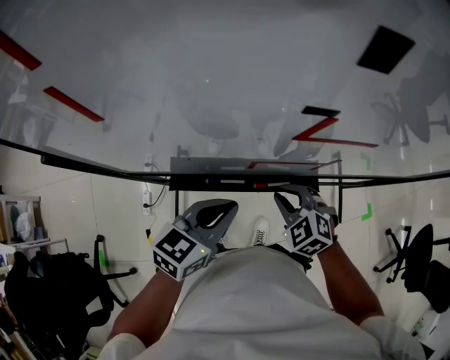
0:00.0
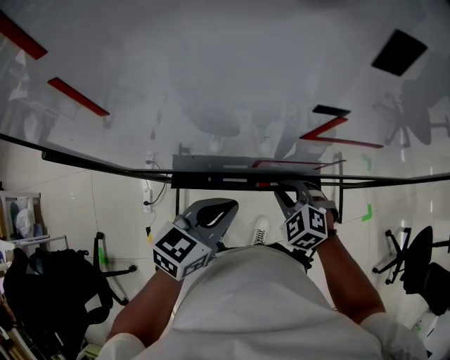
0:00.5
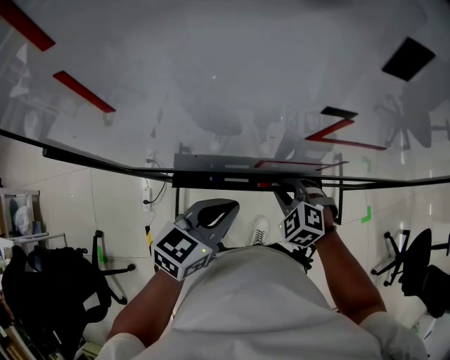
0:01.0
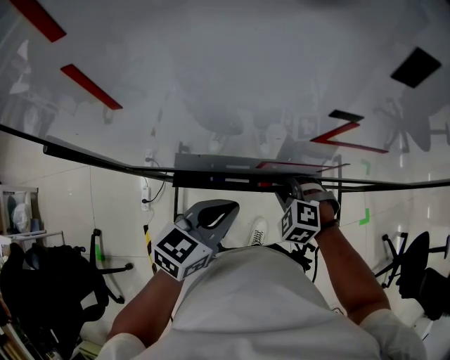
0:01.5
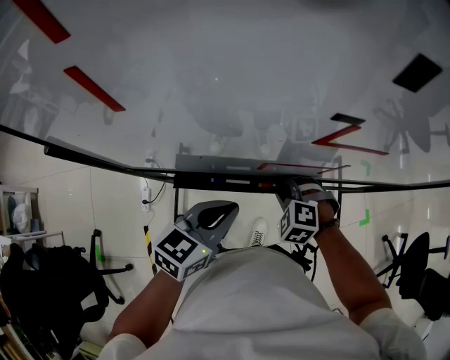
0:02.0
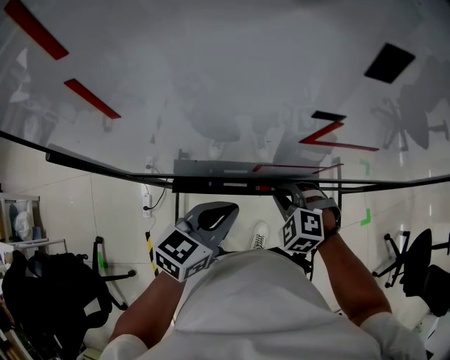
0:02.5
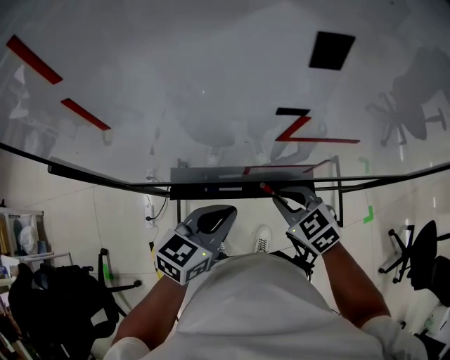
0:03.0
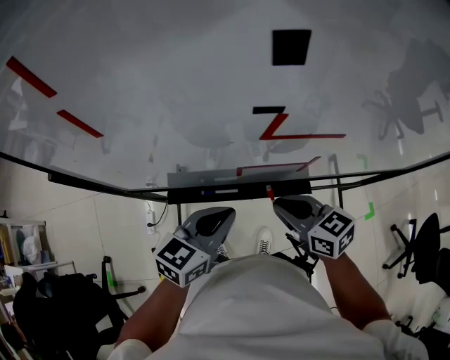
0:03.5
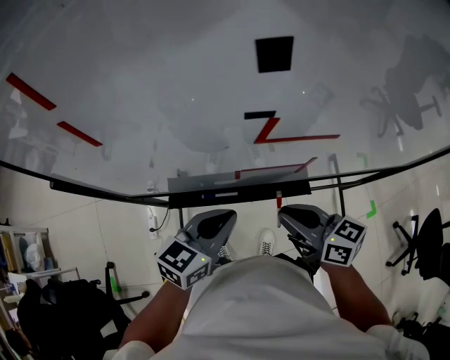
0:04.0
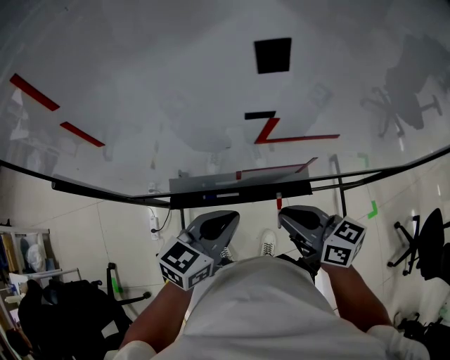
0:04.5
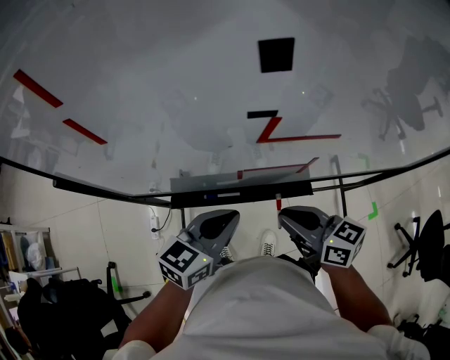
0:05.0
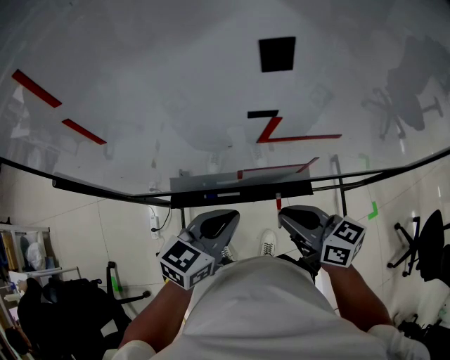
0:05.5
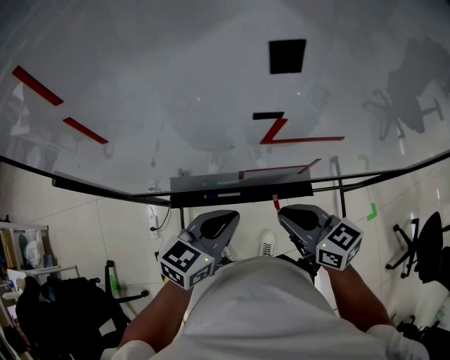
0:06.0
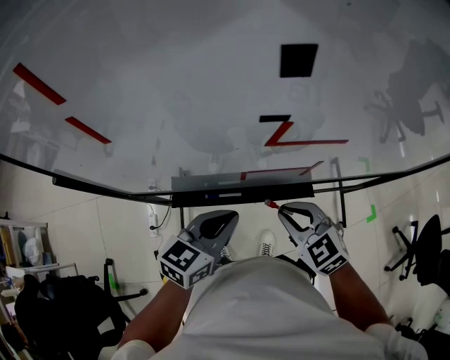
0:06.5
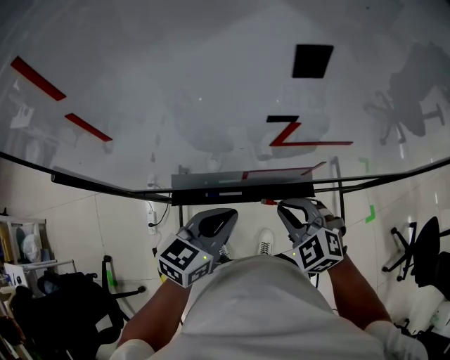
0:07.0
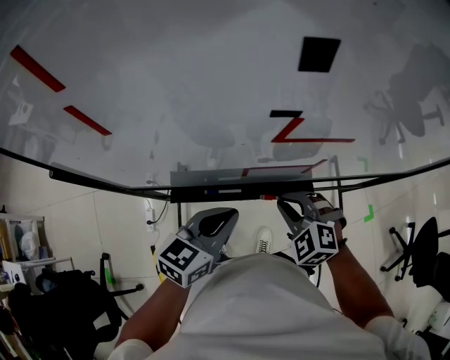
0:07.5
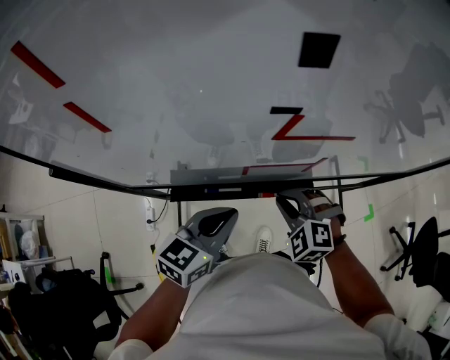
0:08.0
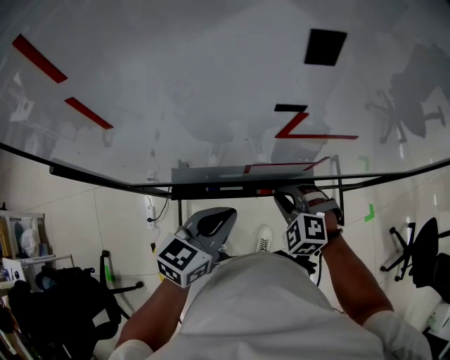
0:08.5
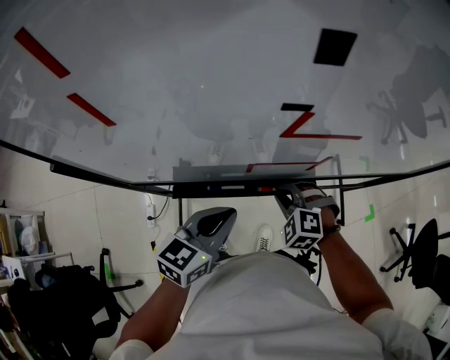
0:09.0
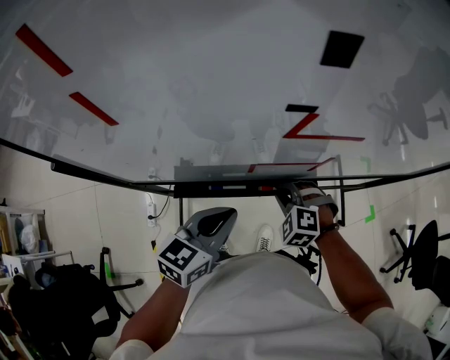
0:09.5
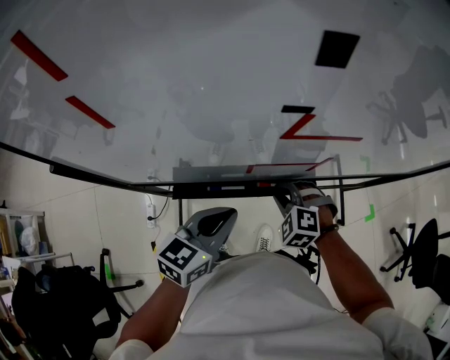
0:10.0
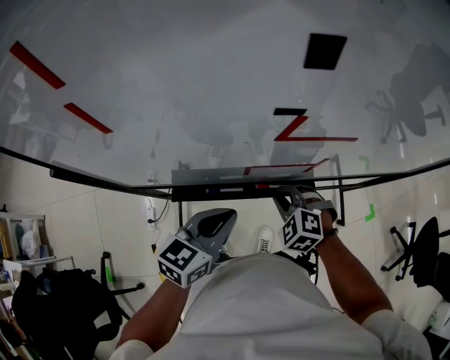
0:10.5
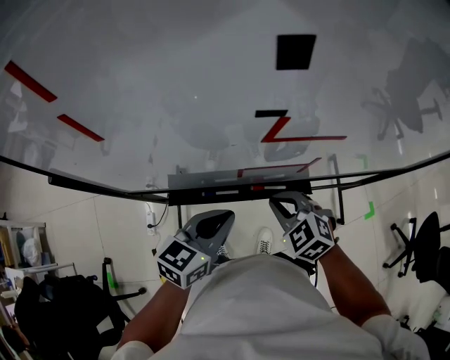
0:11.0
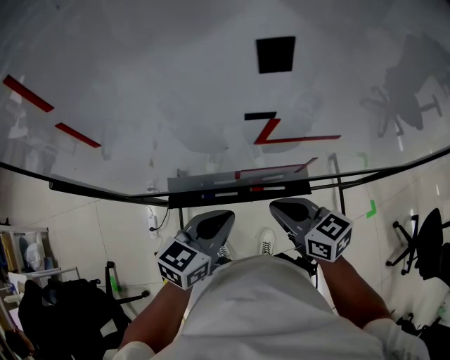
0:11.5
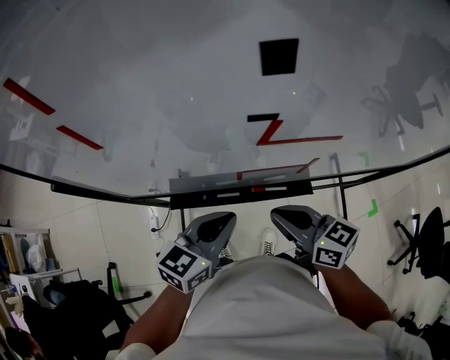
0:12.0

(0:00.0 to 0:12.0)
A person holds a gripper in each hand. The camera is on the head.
0:00.0 - 0:02.0: The right gripper rotates about 30 degrees.
0:02.0 - 0:04.0: The right gripper is displaced upward by some 15 cm, and tips its fingers upward by about 50 degrees.
0:04.0 - 0:06.0: The grippers stay close to where they were, moving slightly.
0:06.0 - 0:08.0: The right gripper is displaced downward by about 10 cm, and rotates around the line of its fingers by roughly 60 degrees, counterclockwise from behind.
0:08.0 - 0:10.0: The right gripper travels downward by about 5 cm.
0:10.0 - 0:12.0: The right gripper goes roughly 15 cm upward, and rolls clockwise, seen from behind, by approximately 70 degrees.

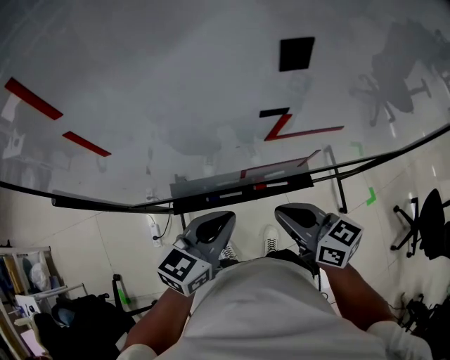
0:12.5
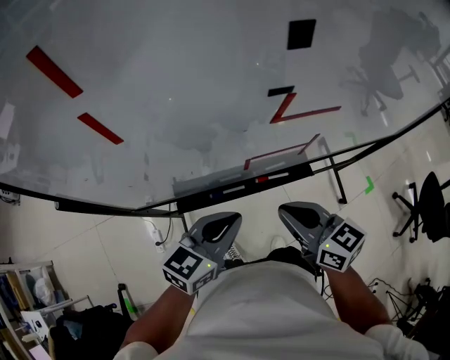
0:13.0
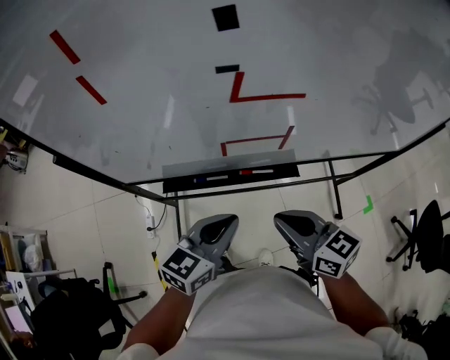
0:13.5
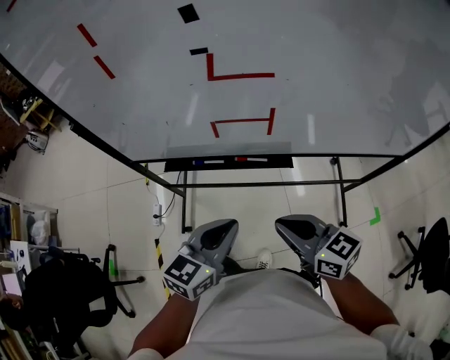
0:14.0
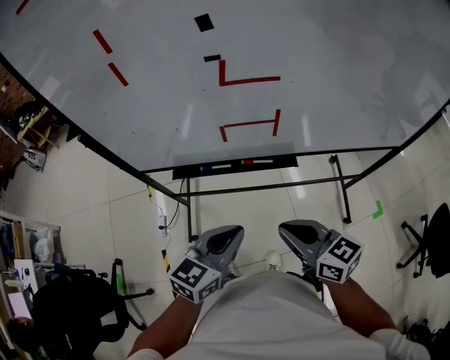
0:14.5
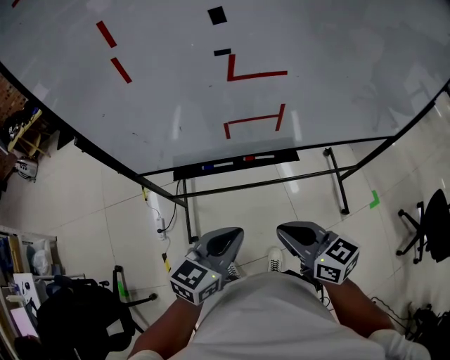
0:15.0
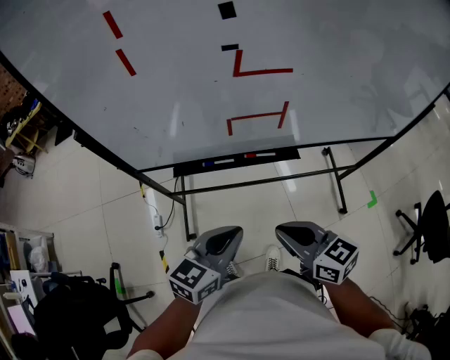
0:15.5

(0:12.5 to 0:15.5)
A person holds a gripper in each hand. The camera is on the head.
0:12.5 - 0:14.0: Both grippers travel together backward and to the right, approximately 15 cm.
0:14.0 - 0:15.5: Both grippers move to the left, approximately 5 cm.

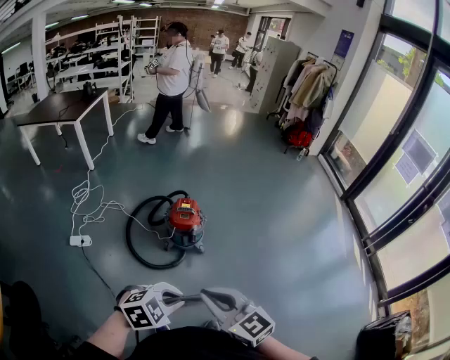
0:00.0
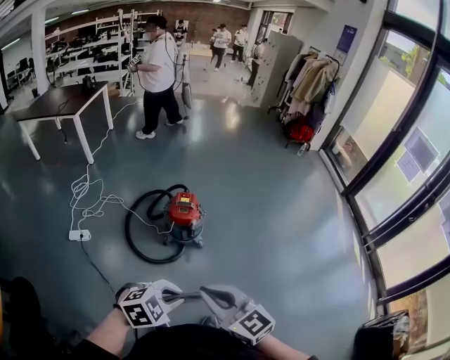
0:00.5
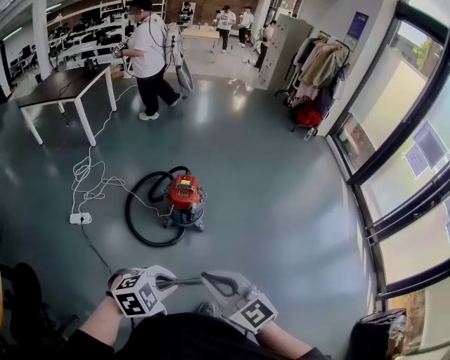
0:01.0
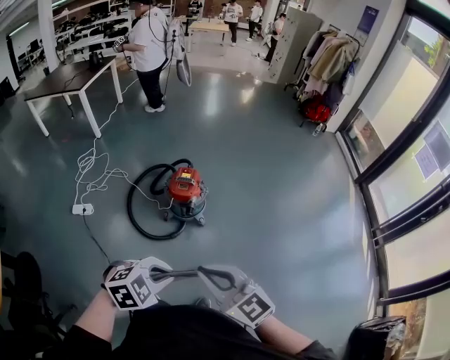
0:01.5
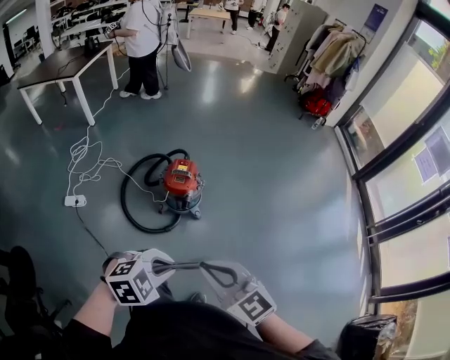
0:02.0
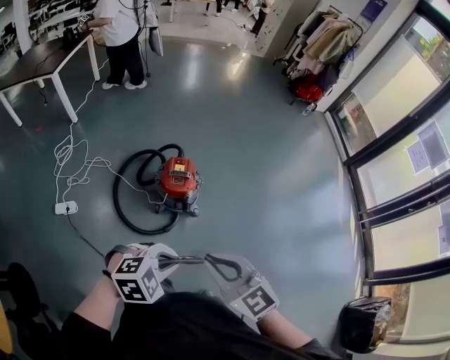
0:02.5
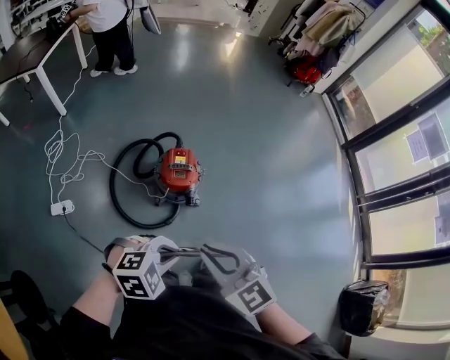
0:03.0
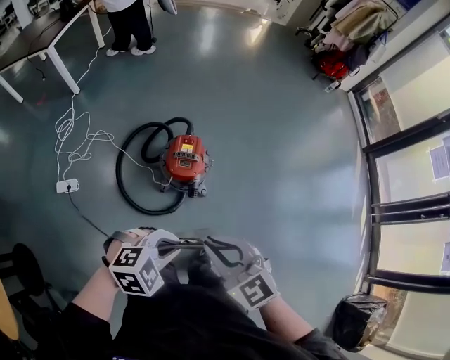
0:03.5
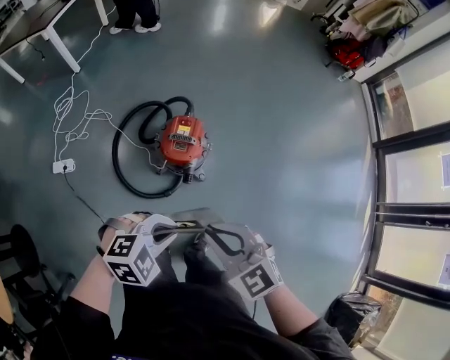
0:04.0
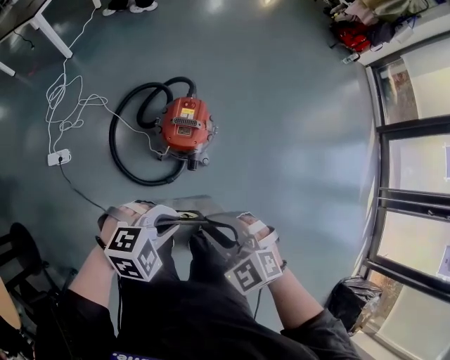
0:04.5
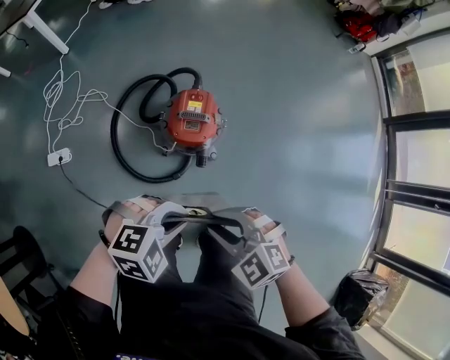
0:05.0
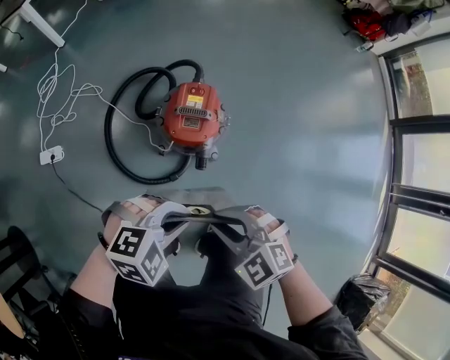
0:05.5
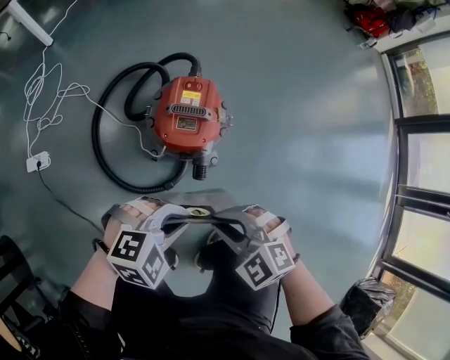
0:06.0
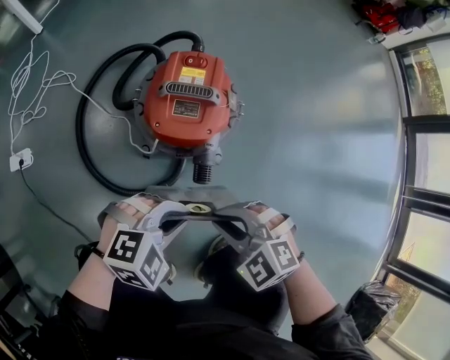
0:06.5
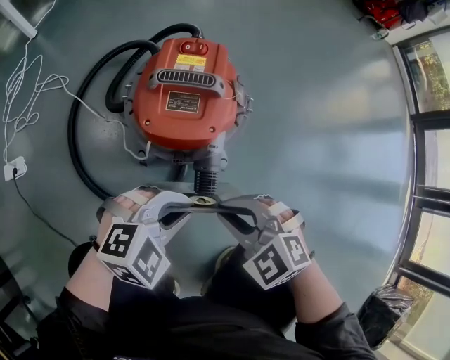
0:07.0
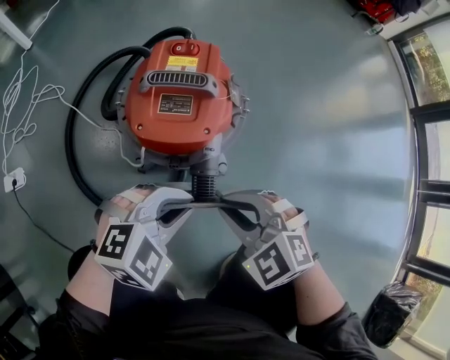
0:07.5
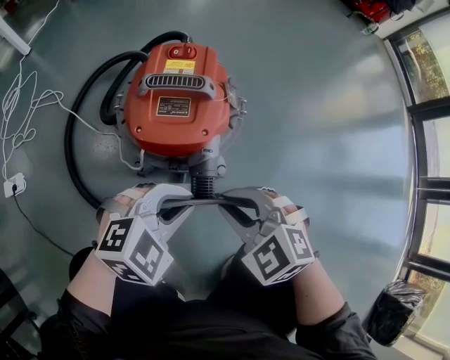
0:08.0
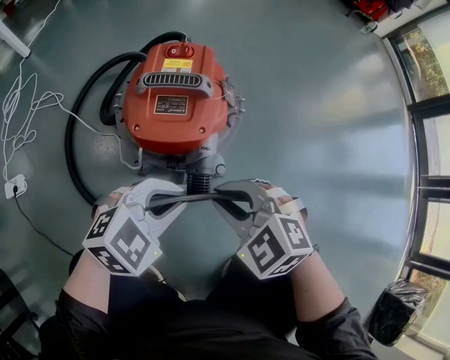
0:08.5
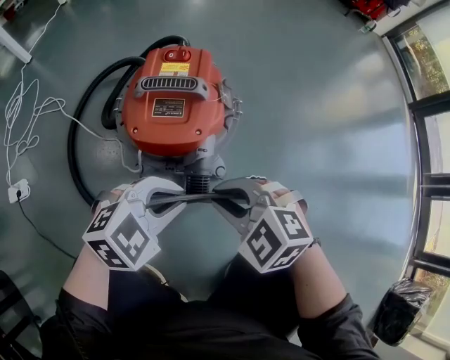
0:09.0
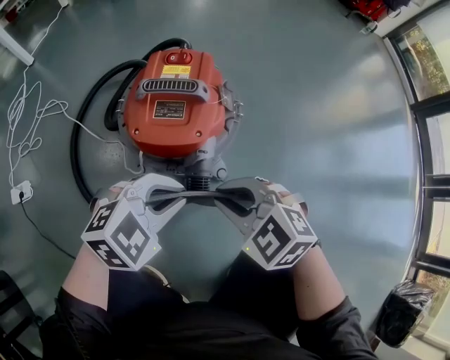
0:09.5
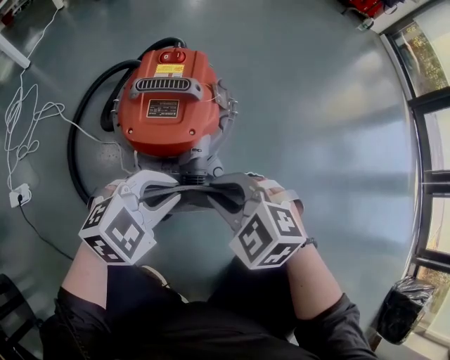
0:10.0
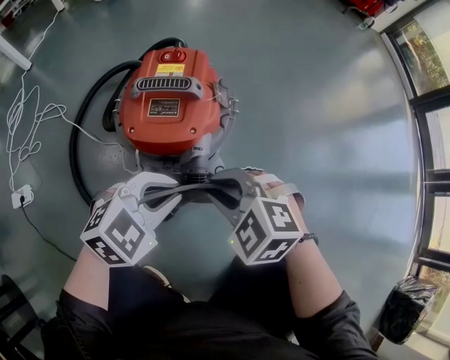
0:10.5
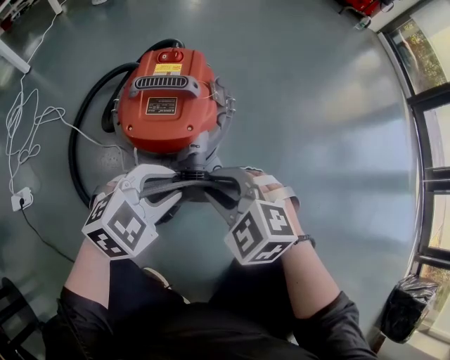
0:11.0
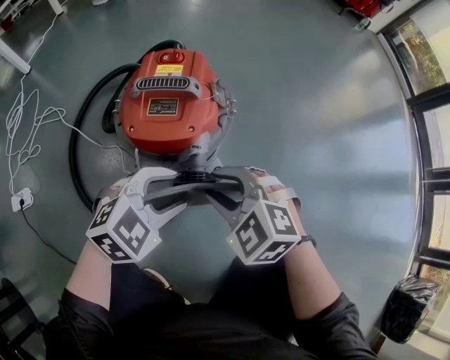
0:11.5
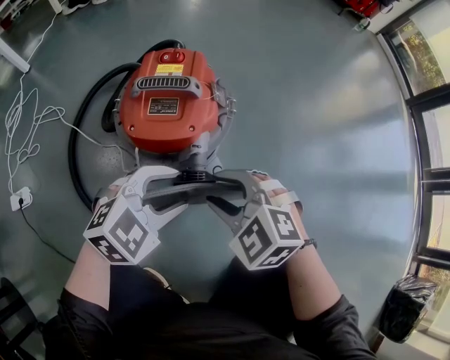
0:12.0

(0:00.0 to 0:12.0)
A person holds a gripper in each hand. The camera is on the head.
0:00.0 - 0:02.0: The right gripper heads forward and to the right, covering about 10 cm; the left gripper shifts some 10 cm forward.
0:02.0 - 0:04.0: The grippers both shift forward and downward by approximately 25 cm.
0:04.0 - 0:06.0: Both grippers move downward, approximately 30 cm. The right gripper turns by some 30 degrees.
0:06.0 - 0:08.0: The grippers both shift downward by some 20 cm.
0:08.0 - 0:10.0: The grippers make only small movements.
0:10.0 - 0:12.0: The right gripper opens up. Meanwhile the left gripper opens.
